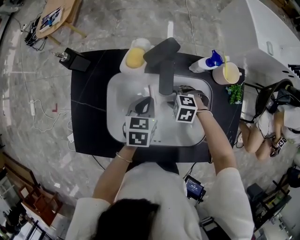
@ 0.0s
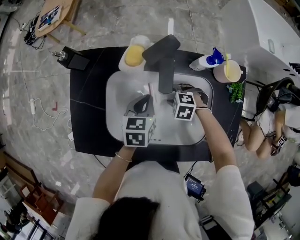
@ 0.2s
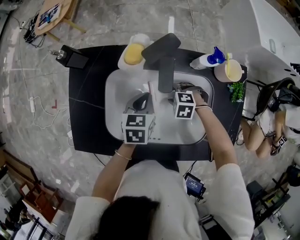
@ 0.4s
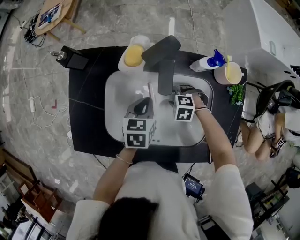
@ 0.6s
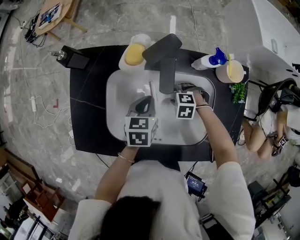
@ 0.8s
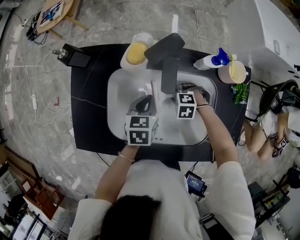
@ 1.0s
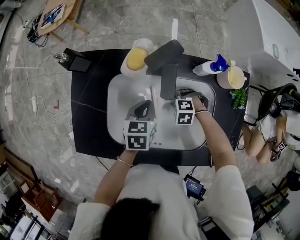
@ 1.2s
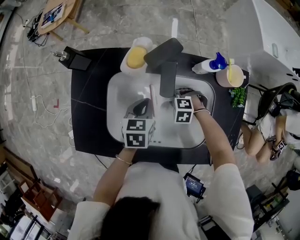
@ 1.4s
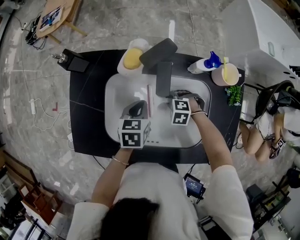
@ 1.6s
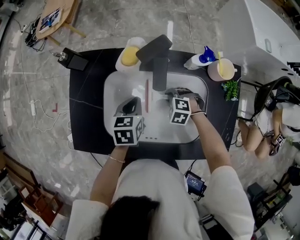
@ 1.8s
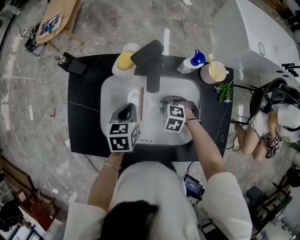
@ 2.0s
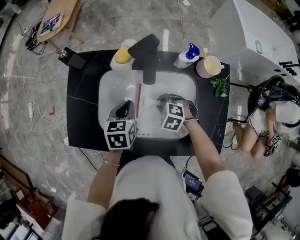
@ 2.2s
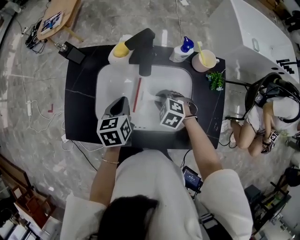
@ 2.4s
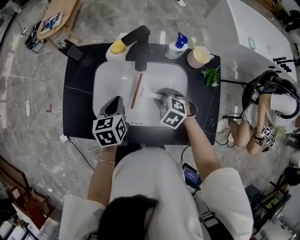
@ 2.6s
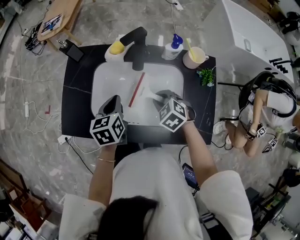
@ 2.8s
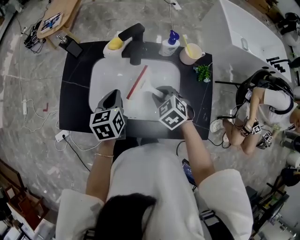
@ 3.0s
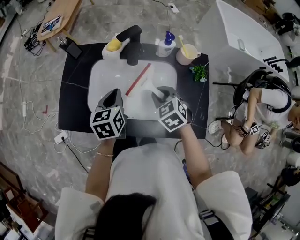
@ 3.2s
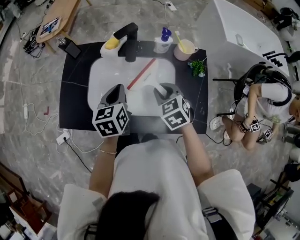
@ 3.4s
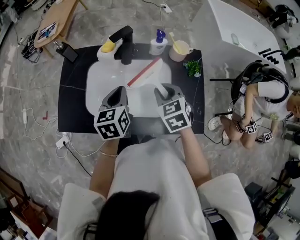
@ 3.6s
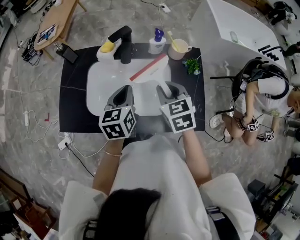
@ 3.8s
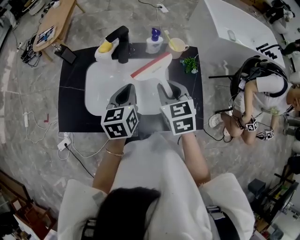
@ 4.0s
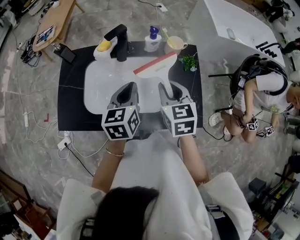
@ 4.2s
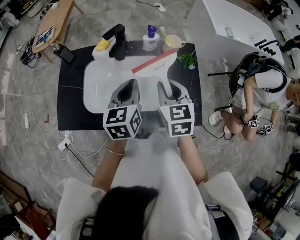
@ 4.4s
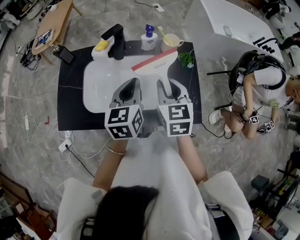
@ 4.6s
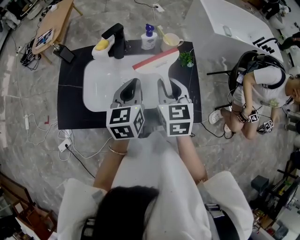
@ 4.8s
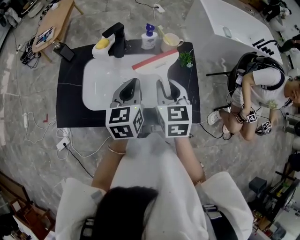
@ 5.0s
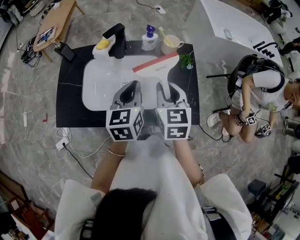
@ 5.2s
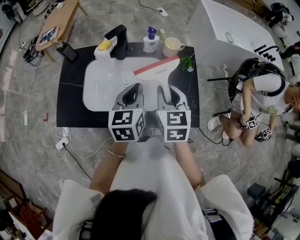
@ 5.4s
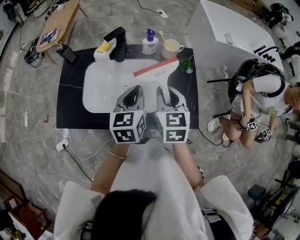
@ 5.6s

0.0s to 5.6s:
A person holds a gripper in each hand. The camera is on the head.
0.0s to 1.4s: The right gripper closes.
1.4s to 2.8s: The left gripper goes some 10 cm upward, backward and to the left. Meanwhile the right gripper goes some 20 cm upward and backward, and changes its angle by approximately 40 degrees.
2.8s to 4.2s: The right gripper heads upward and to the right, covering approximately 20 cm, and rotates approximately 50 degrees. Meanwhile the left gripper heads to the right and upward, covering about 15 cm.
4.2s to 5.6s: The left gripper shifts by some 5 cm.

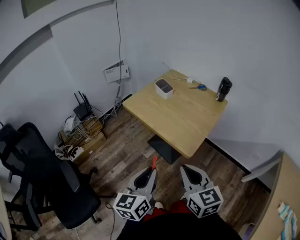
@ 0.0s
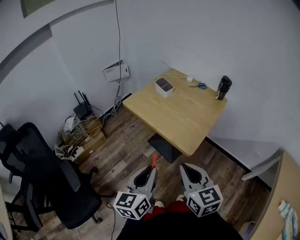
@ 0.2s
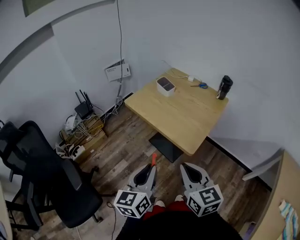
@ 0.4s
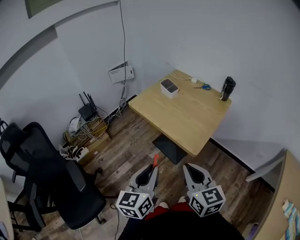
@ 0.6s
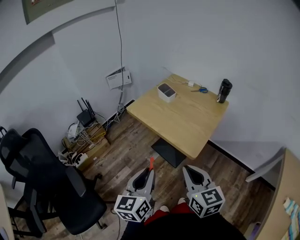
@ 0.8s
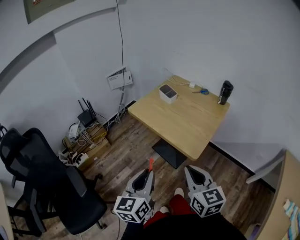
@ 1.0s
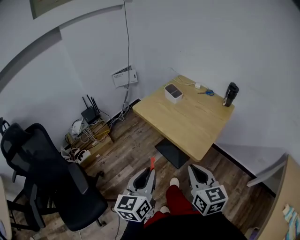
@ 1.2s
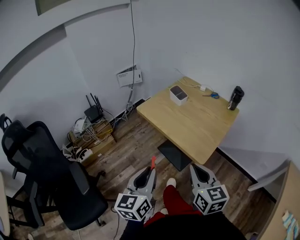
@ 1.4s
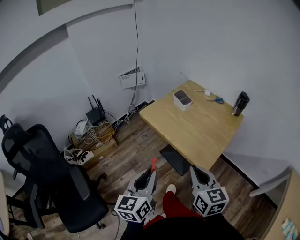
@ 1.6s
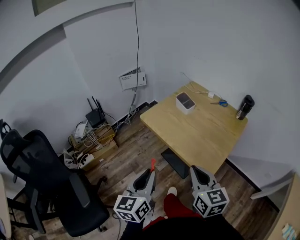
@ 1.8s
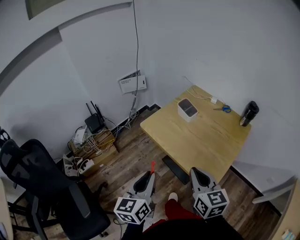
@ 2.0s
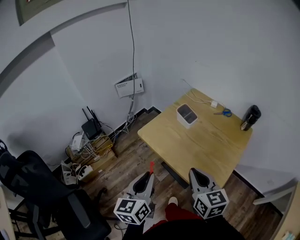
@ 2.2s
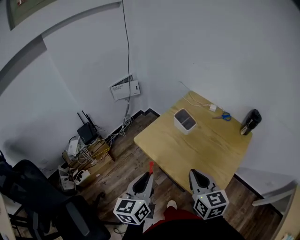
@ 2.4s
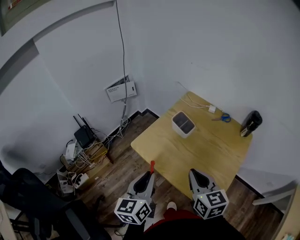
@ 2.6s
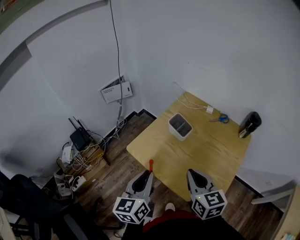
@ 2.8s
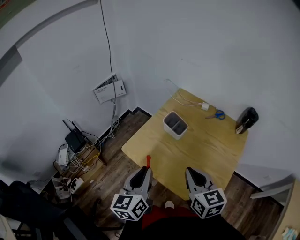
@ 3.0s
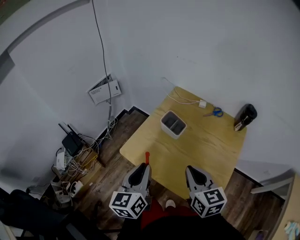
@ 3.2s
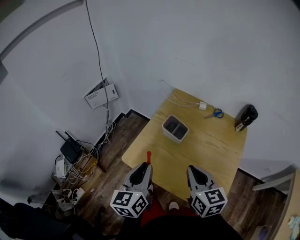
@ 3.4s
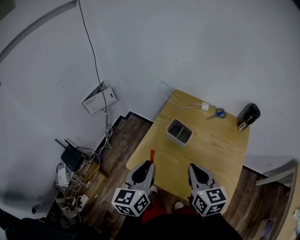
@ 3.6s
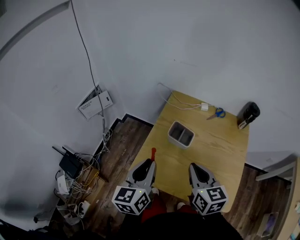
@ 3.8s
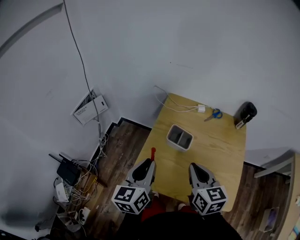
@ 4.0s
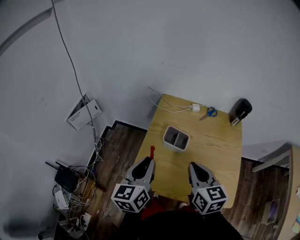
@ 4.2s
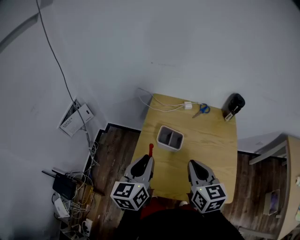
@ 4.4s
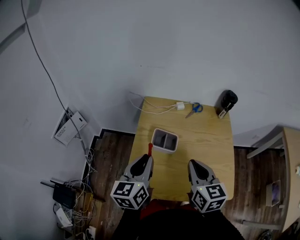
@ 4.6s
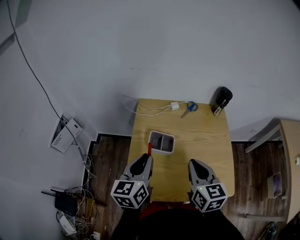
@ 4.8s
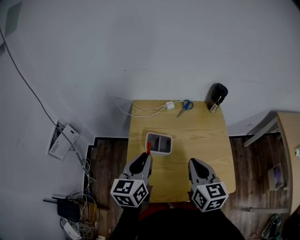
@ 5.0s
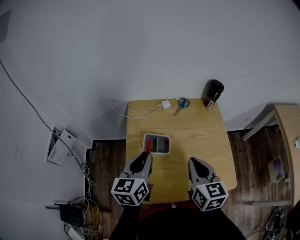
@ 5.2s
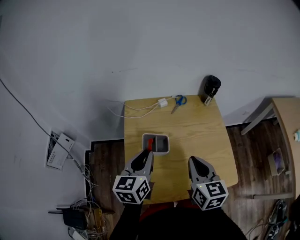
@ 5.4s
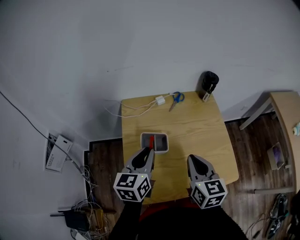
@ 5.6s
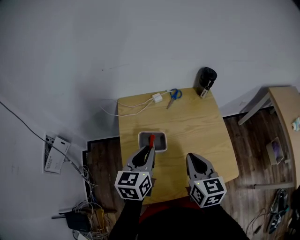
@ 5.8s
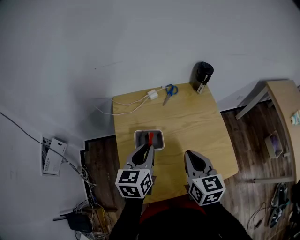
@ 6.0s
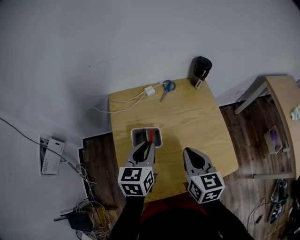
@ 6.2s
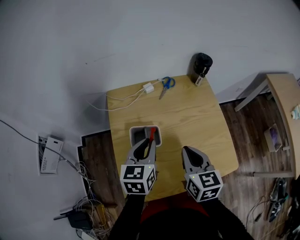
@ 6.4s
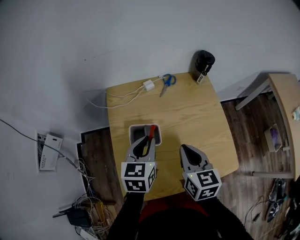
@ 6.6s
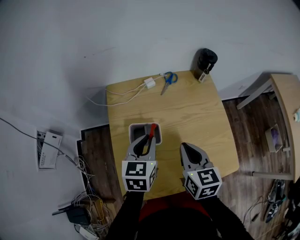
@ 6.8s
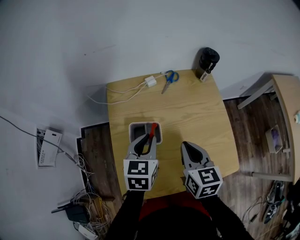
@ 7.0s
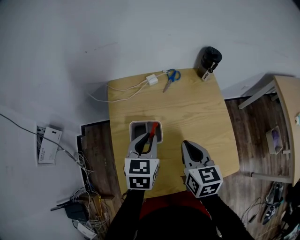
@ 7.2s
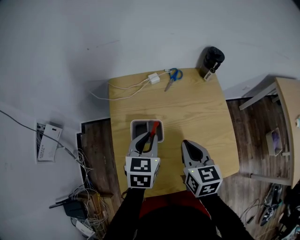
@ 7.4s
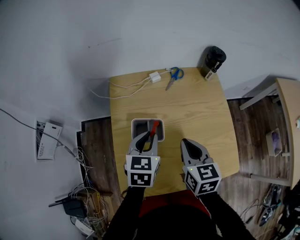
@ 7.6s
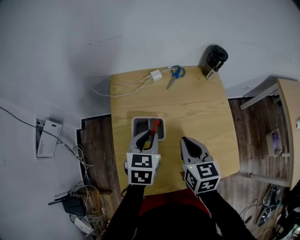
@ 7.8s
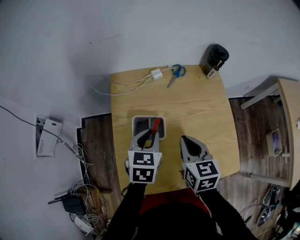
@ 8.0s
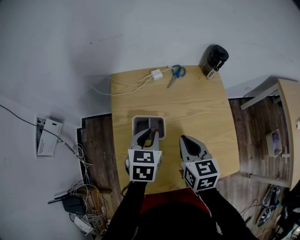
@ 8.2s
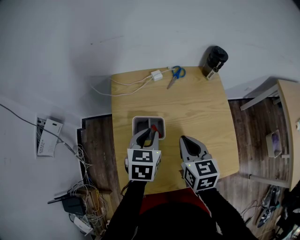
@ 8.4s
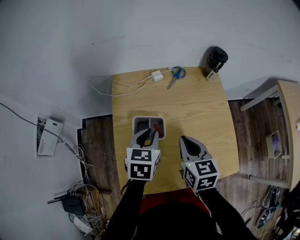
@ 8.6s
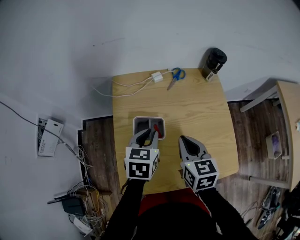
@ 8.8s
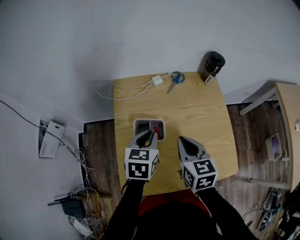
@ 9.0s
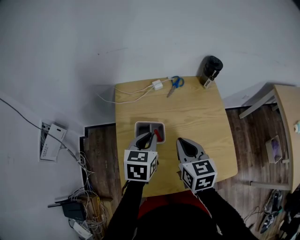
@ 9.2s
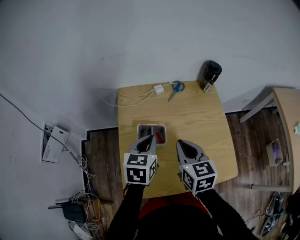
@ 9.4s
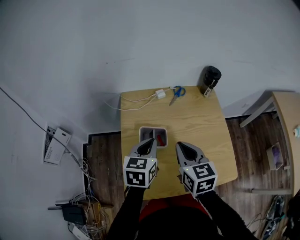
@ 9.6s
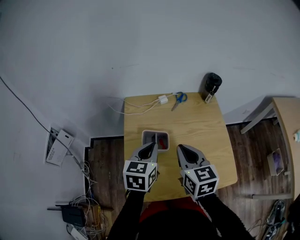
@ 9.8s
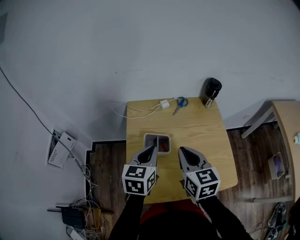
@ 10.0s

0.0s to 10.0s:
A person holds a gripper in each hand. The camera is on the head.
0.0s to 1.4s: The left gripper goes approximately 5 cm to the left.
1.4s to 2.8s: Both grippers move forward, some 30 cm.
2.8s to 4.2s: The left gripper ends up approximately 20 cm from where it was, and rotates approximately 30 degrees. Meanwhile the right gripper shifts by approximately 10 cm, and rotates roughly 30 degrees.
4.2s to 5.8s: The left gripper shifts by some 15 cm, and turns by about 30 degrees. Meanwhile the right gripper ends up some 5 cm from where it was, and changes its angle by some 30 degrees.
5.8s to 7.2s: The left gripper is displaced downward by some 5 cm. Meanwhile the right gripper shifts by approximately 5 cm.
7.2s to 8.6s: The grippers make only small movements.
8.6s to 10.0s: The two grippers go about 10 cm upward.

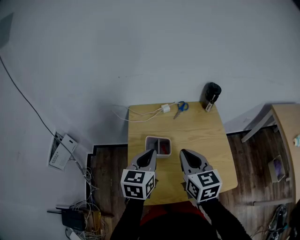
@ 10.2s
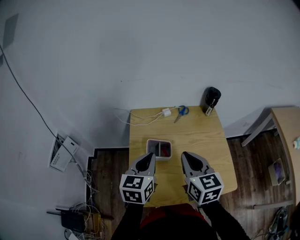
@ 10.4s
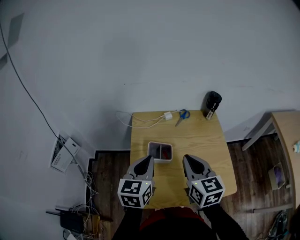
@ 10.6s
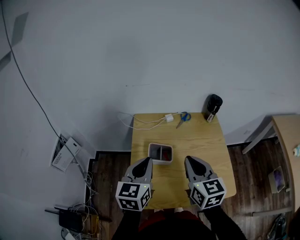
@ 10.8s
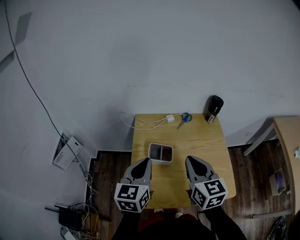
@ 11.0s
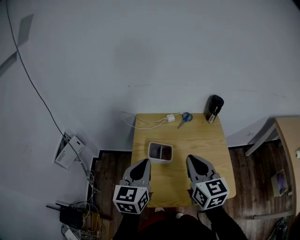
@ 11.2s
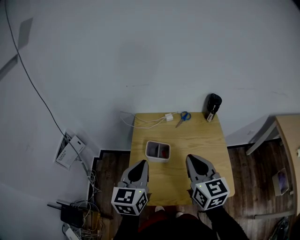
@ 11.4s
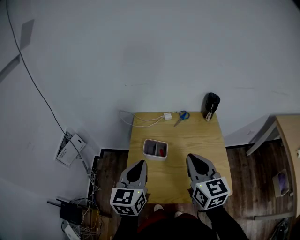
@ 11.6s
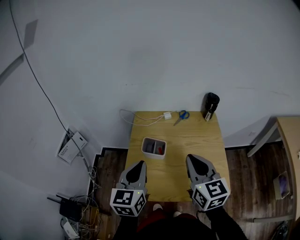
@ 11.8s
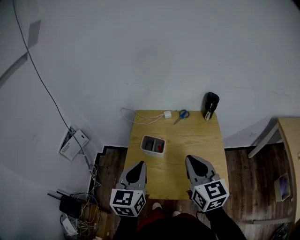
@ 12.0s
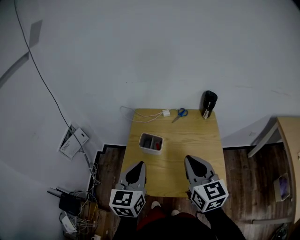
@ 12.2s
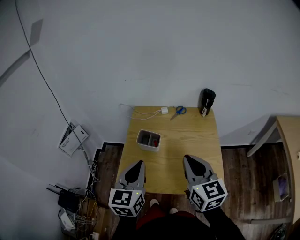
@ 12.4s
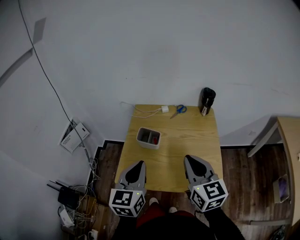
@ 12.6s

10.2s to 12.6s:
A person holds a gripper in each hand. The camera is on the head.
10.2s to 11.4s: The right gripper moves upward, about 5 cm; the left gripper heads backward and upward, covering roughly 10 cm.
11.4s to 12.6s: The two grippers go some 10 cm backward and to the right.

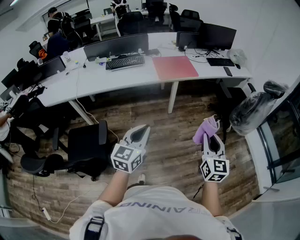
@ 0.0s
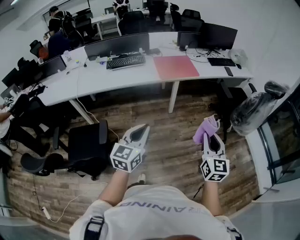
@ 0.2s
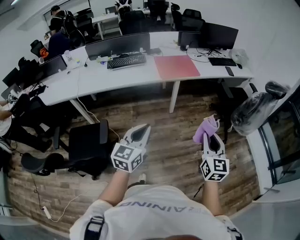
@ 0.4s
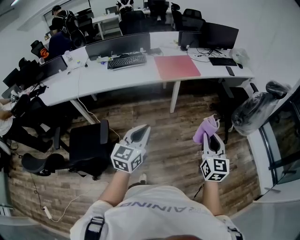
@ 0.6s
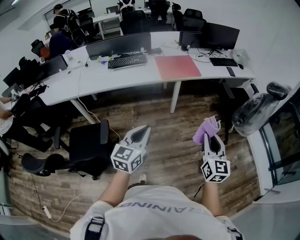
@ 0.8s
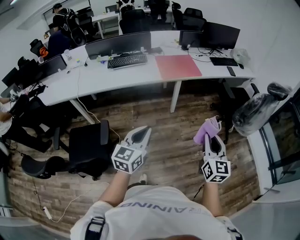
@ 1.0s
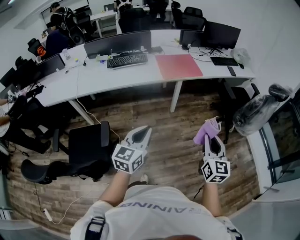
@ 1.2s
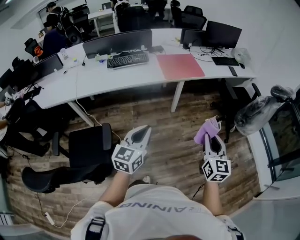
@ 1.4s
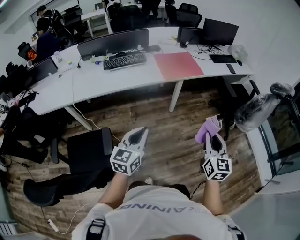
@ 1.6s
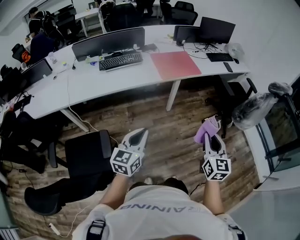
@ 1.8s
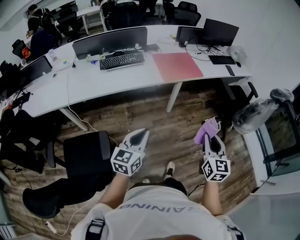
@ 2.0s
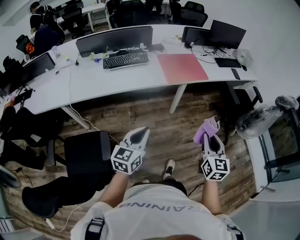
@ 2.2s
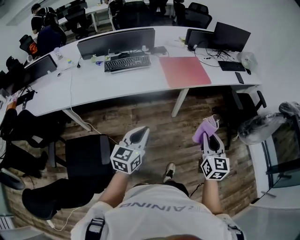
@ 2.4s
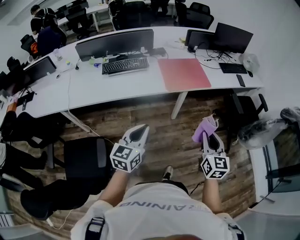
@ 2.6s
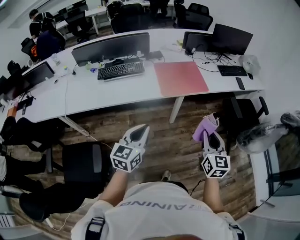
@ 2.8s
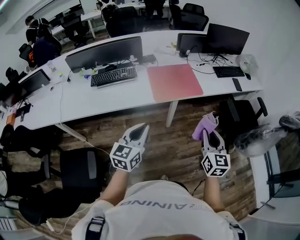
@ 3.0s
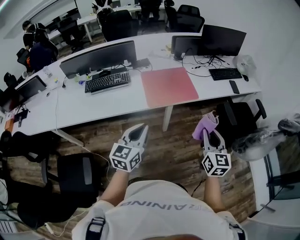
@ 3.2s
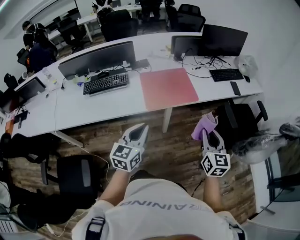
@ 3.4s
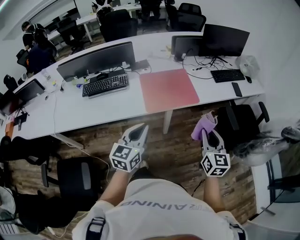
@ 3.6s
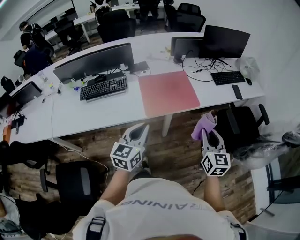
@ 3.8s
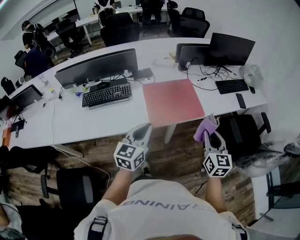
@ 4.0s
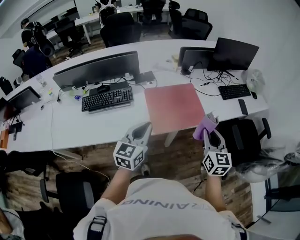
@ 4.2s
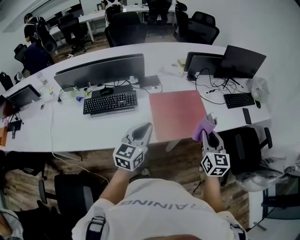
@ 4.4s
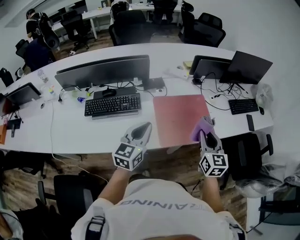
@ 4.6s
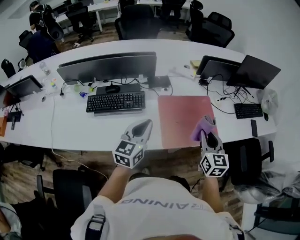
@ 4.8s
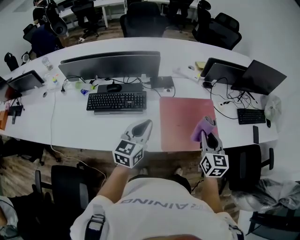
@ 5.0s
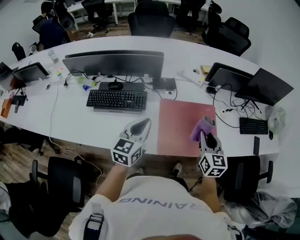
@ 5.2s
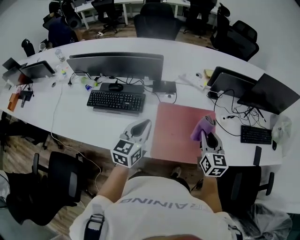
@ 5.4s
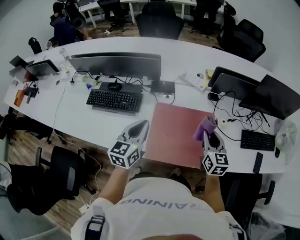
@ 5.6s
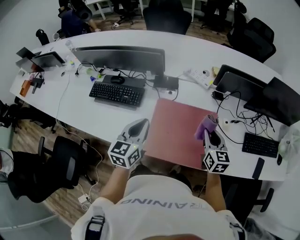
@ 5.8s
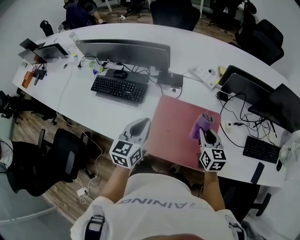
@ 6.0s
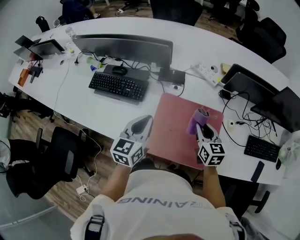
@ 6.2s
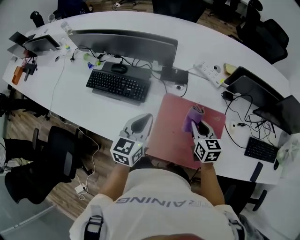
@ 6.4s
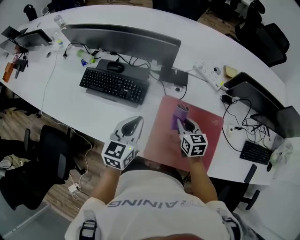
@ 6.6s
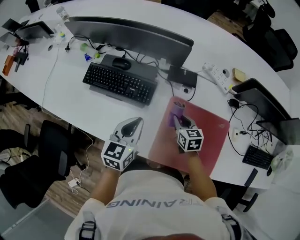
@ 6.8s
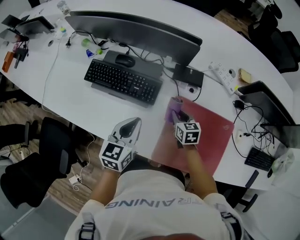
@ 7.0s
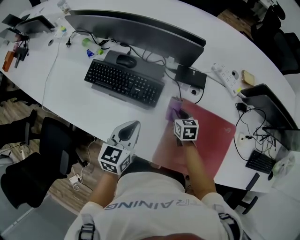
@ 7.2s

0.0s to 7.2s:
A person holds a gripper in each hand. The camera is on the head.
0.0s to 1.4s: The grippers both shift to the left by about 10 cm.
1.4s to 2.8s: The two grippers go approximately 25 cm forward.
2.8s to 4.4s: The two grippers go roughly 35 cm forward.
4.4s to 5.8s: The left gripper ends up about 20 cm from where it was, and rotates about 30 degrees; the right gripper changes place by some 30 cm, and rotates roughly 30 degrees.
5.8s to 7.2s: The right gripper moves to the left, downward and forward, about 40 cm, and turns by about 30 degrees; the left gripper is displaced to the left, downward and forward by roughly 25 cm.
